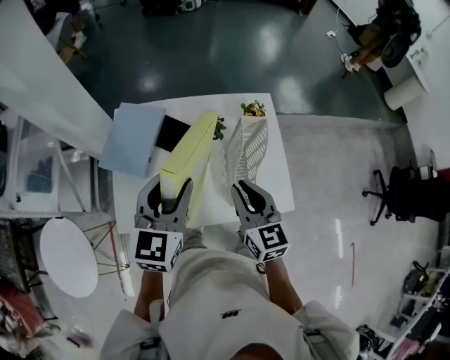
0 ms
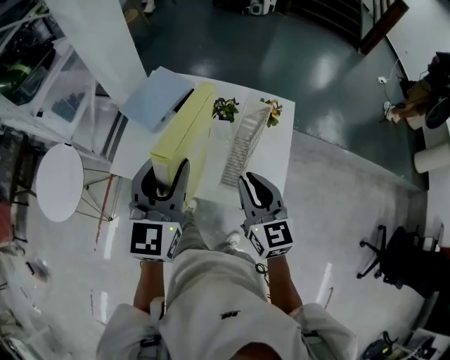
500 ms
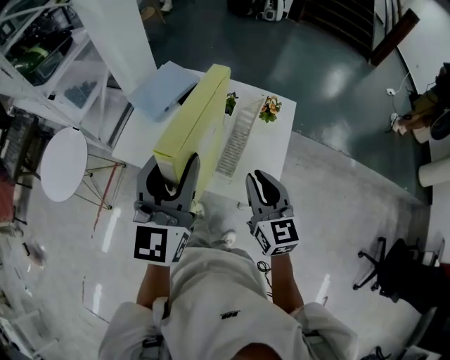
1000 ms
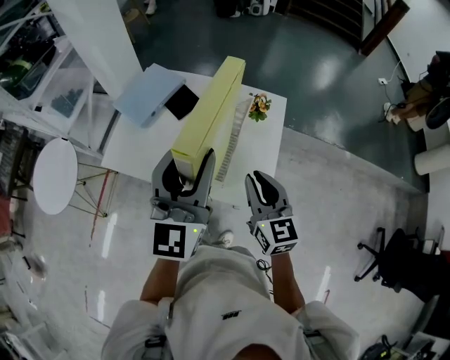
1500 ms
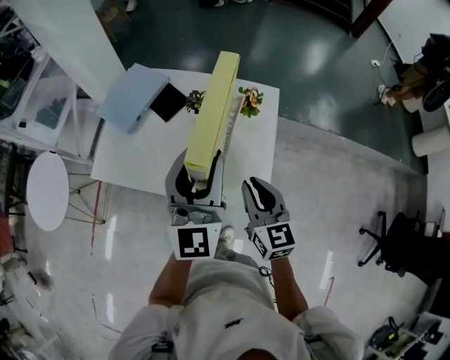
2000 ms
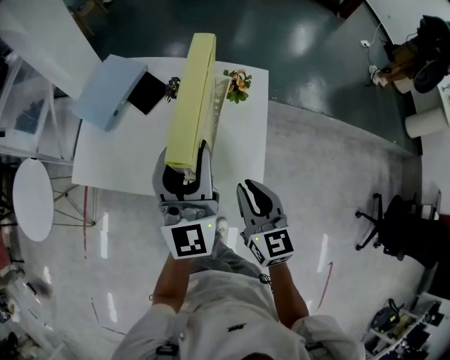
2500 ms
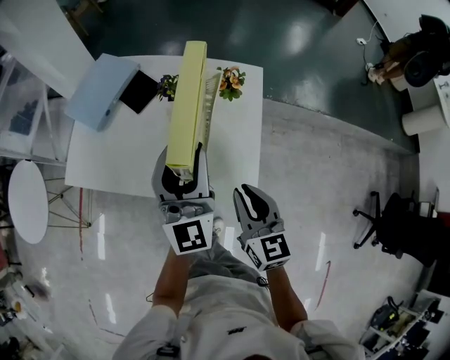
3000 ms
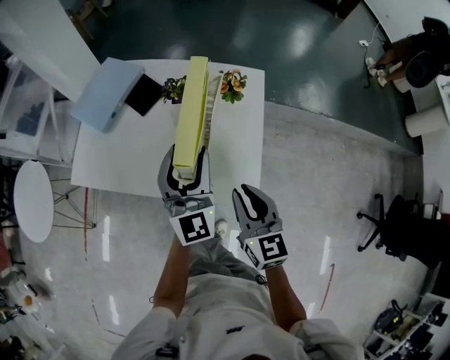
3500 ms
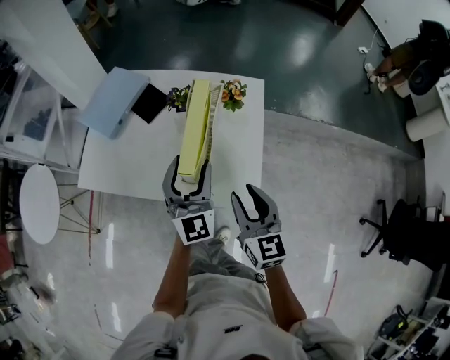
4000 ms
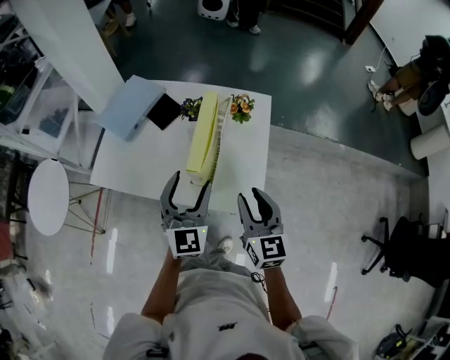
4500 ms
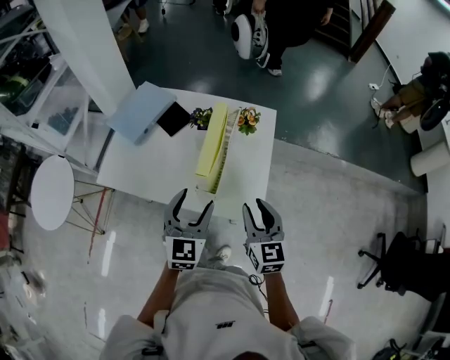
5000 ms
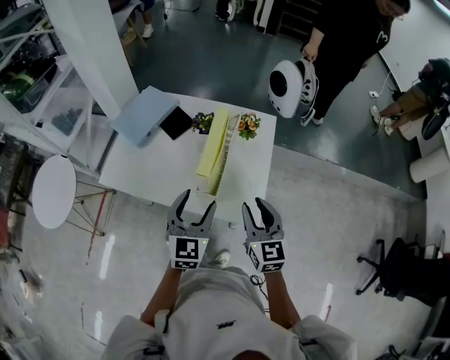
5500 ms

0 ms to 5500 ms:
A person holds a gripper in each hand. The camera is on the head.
0 ms to 2000 ms: The grippers both shift to the right and backward by approximately 20 cm. The left gripper turns by some 40 degrees.
2000 ms to 3500 ms: The right gripper is displaced downward by roughly 5 cm. The left gripper travels downward by about 15 cm.
3500 ms to 5500 ms: The left gripper is displaced backward by about 10 cm, and turns by approximately 20 degrees. The right gripper is displaced upward by about 5 cm.

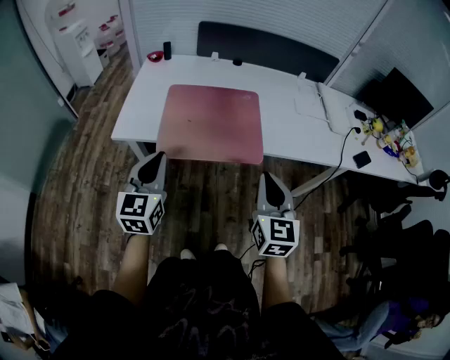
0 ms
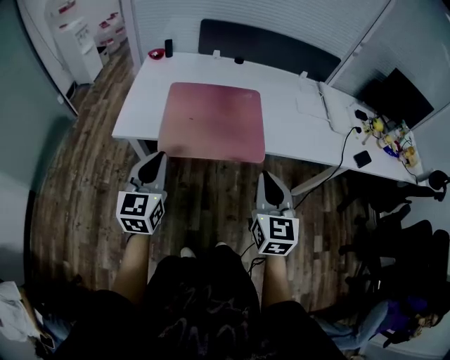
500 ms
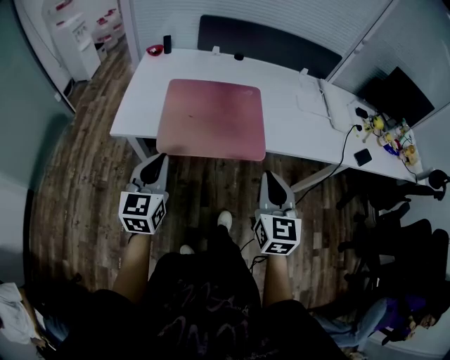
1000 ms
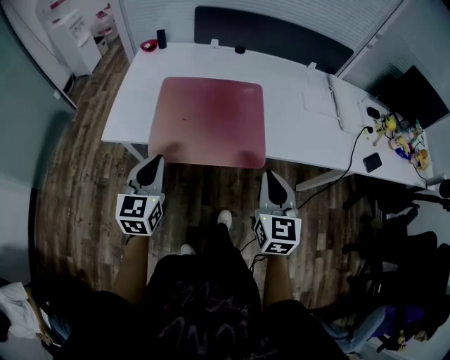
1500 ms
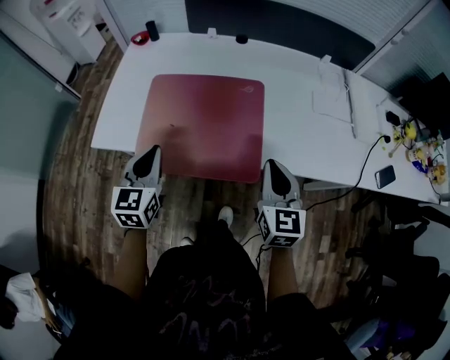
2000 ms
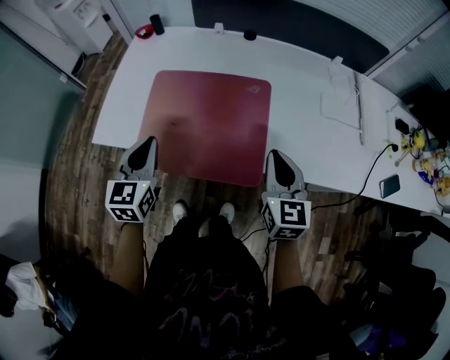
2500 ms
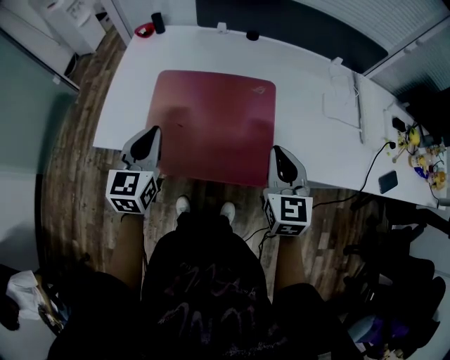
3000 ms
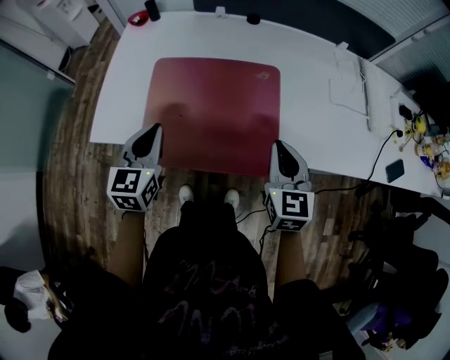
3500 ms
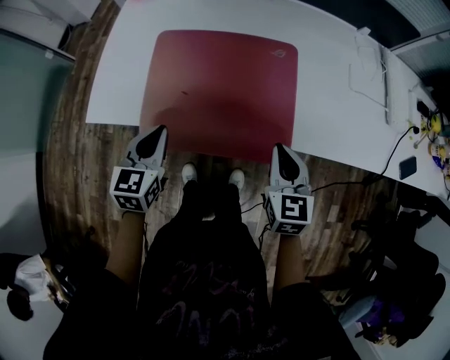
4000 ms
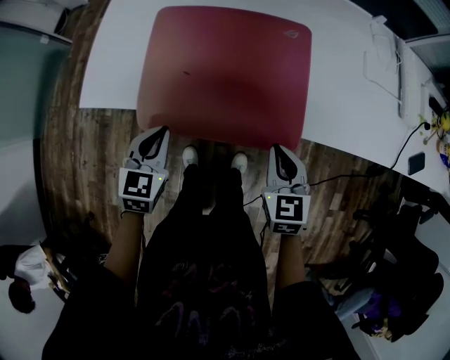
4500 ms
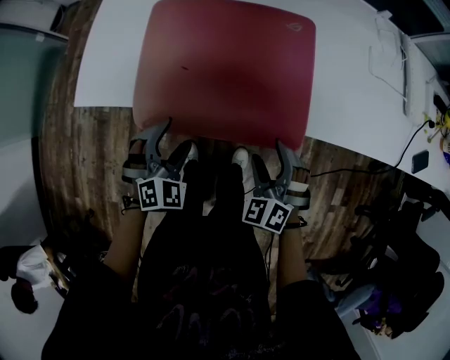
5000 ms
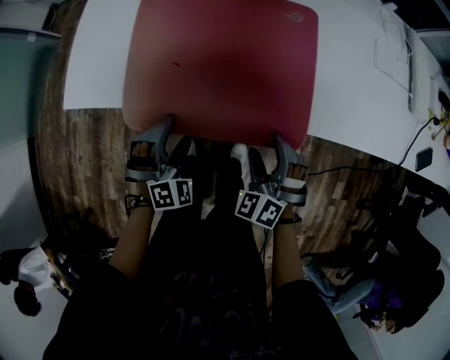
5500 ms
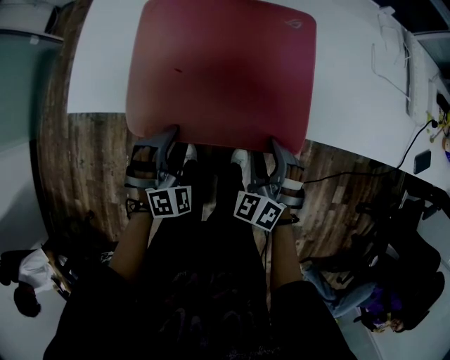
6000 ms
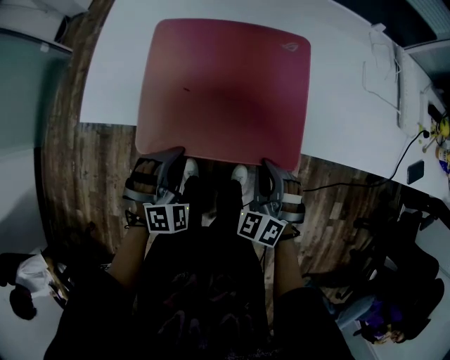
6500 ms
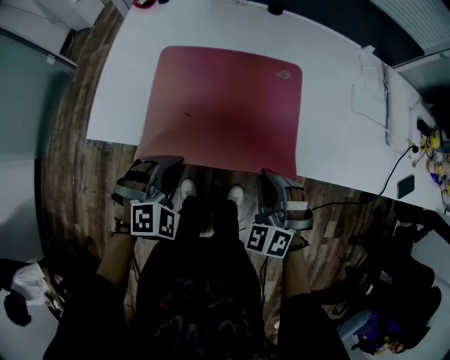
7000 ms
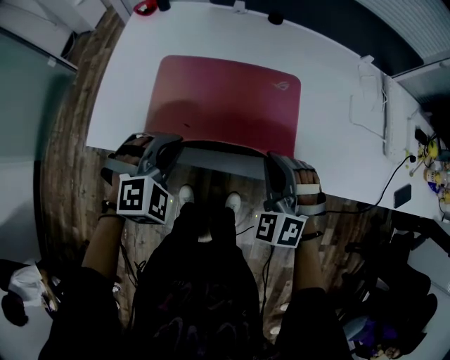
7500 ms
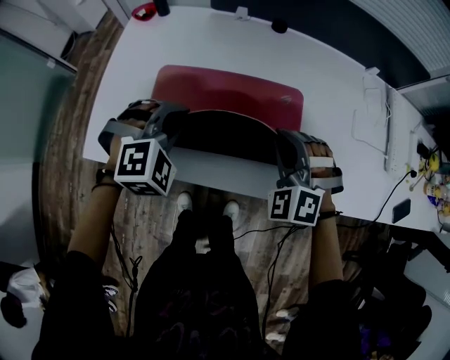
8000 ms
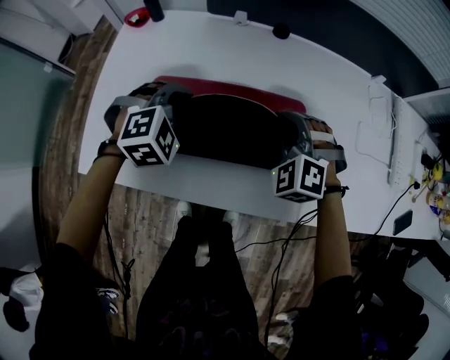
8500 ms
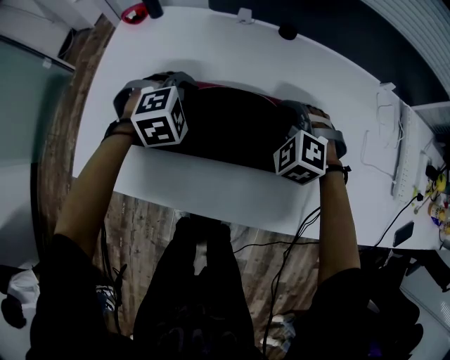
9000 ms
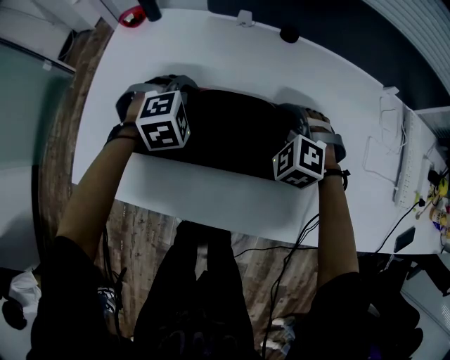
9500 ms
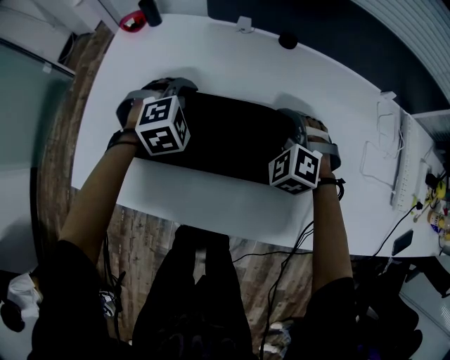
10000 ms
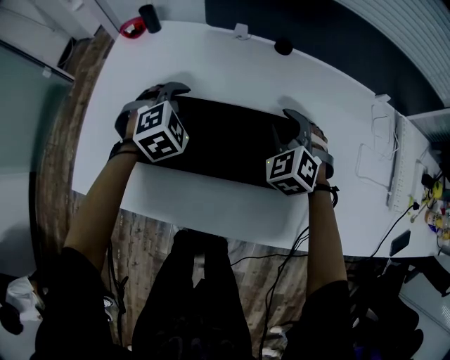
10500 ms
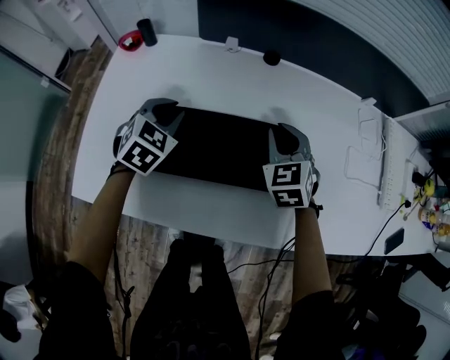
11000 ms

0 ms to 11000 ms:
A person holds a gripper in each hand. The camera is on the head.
0 ms to 2000 ms: Both grippers travel together forward, roughly 20 cm.
2000 ms to 3500 ms: Both grippers travel together forward, about 5 cm.
3500 ms to 5500 ms: The grippers both shift downward by roughly 20 cm. The right gripper twists some 50 degrees counterclockwise, seen from behind, and opens up, while the left gripper rotates around the line of its fingers by about 60 degrees, clockwise from behind, and opens its fingers.
5500 ms to 7500 ms: Both grippers move upward and forward, about 20 cm. The right gripper closes; the left gripper closes up.
7500 ms to 9000 ms: The grippers both shift forward by about 25 cm.
9000 ms to 11000 ms: The left gripper changes place by roughly 5 cm, and changes its angle by some 40 degrees, while the right gripper travels upward by some 5 cm, and changes its angle by some 40 degrees.

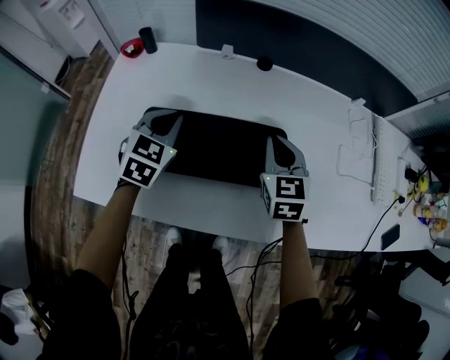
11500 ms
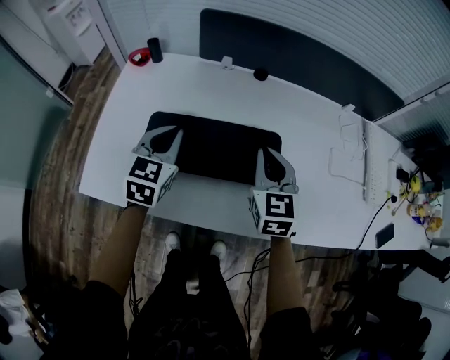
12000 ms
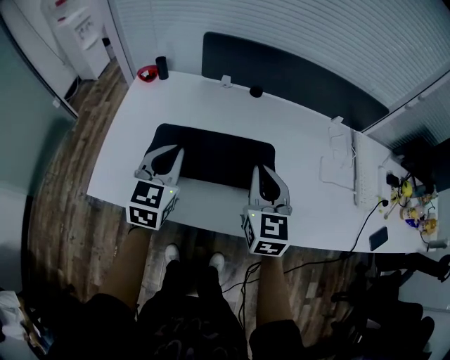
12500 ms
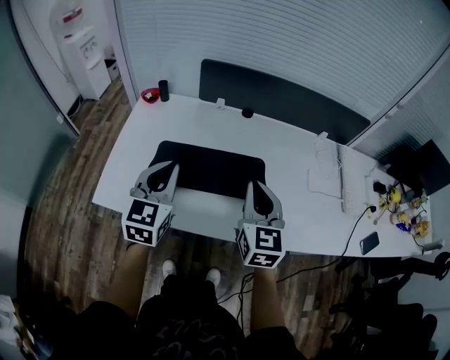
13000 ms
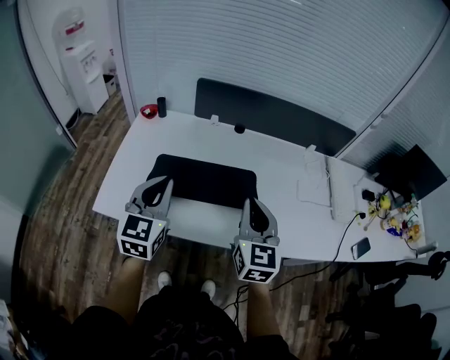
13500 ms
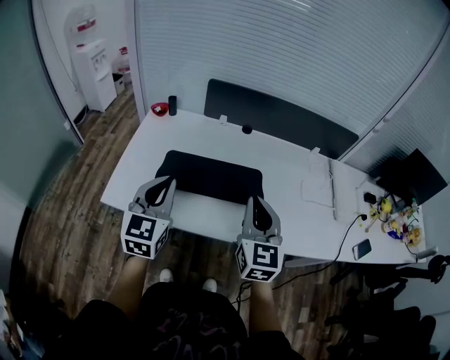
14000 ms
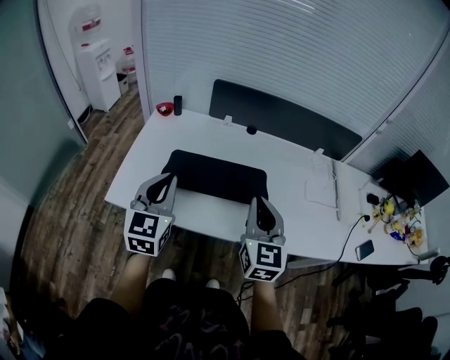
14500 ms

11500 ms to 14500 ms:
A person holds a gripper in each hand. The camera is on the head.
11500 ms to 13000 ms: The grippers both shift backward and upward by roughly 25 cm. The left gripper changes its angle by about 20 degrees.
13000 ms to 14500 ms: Both grippers move backward, approximately 10 cm.

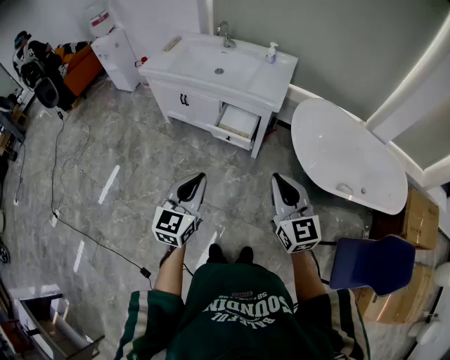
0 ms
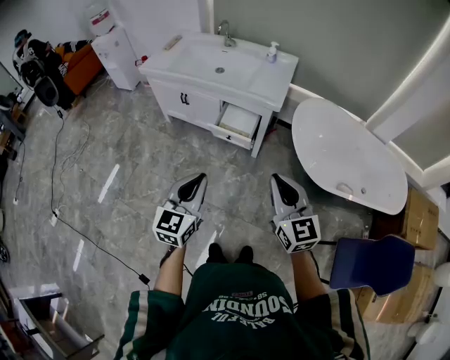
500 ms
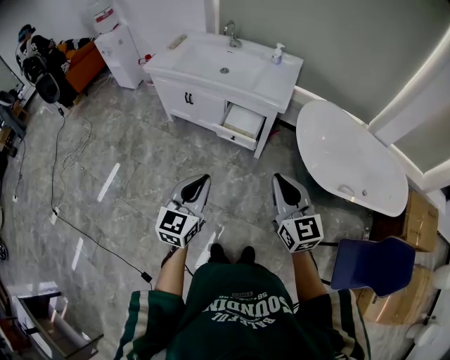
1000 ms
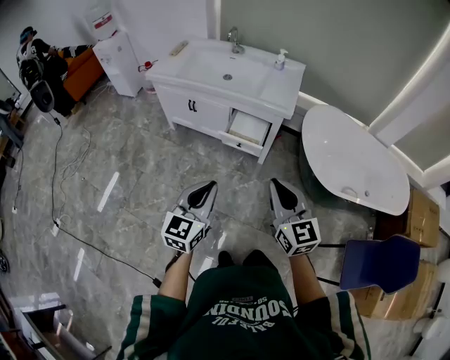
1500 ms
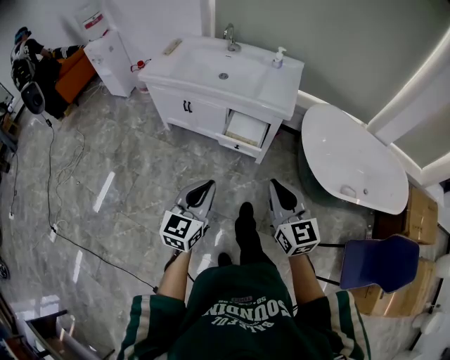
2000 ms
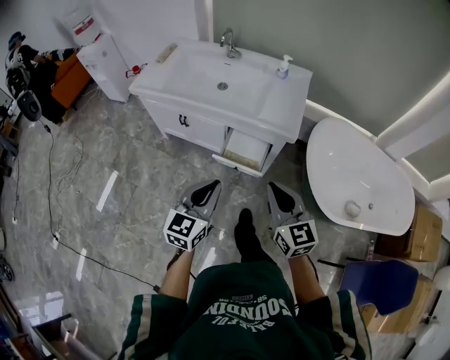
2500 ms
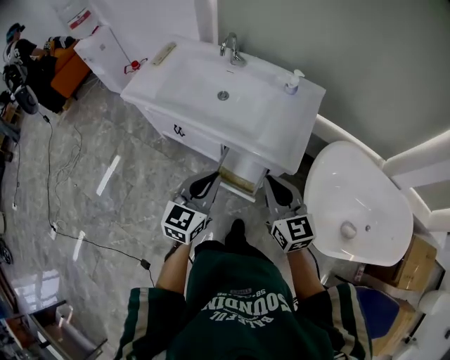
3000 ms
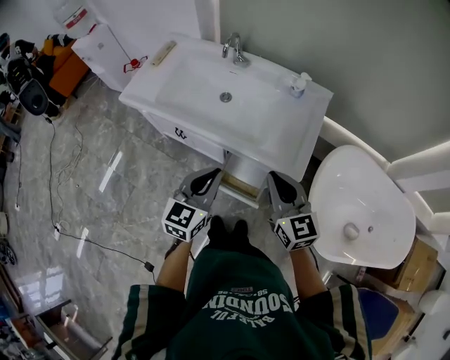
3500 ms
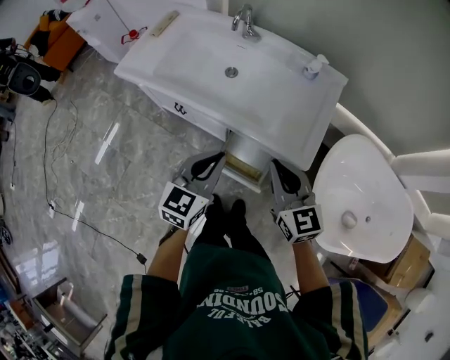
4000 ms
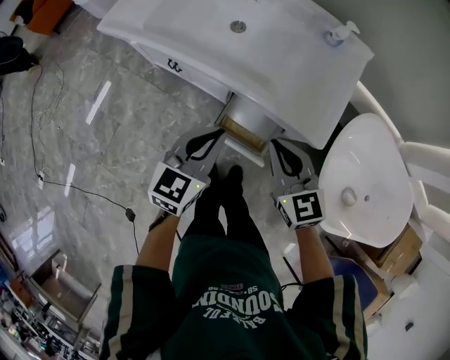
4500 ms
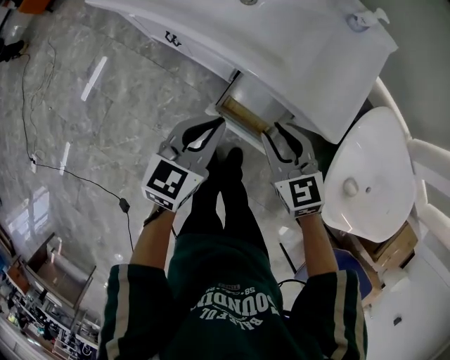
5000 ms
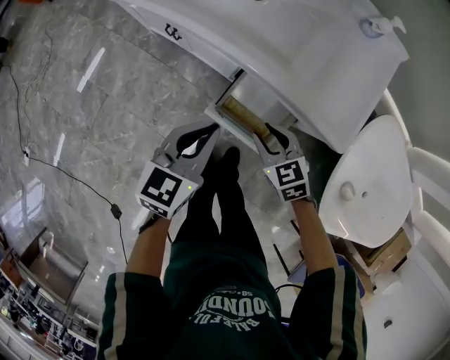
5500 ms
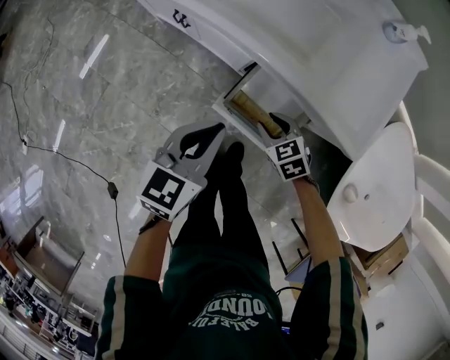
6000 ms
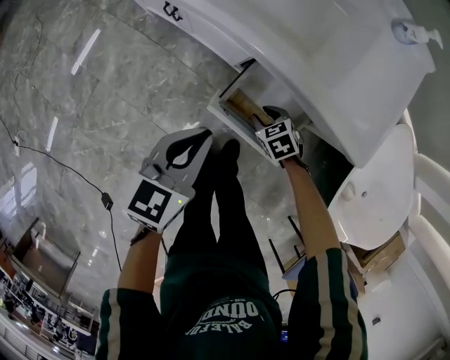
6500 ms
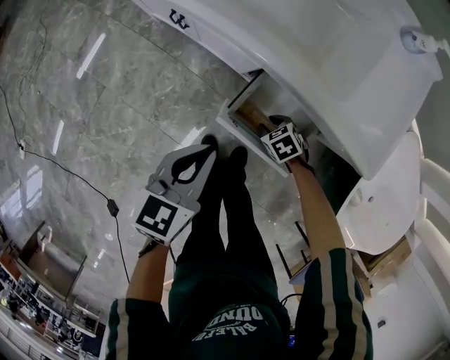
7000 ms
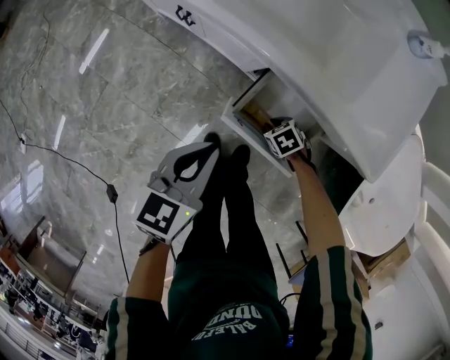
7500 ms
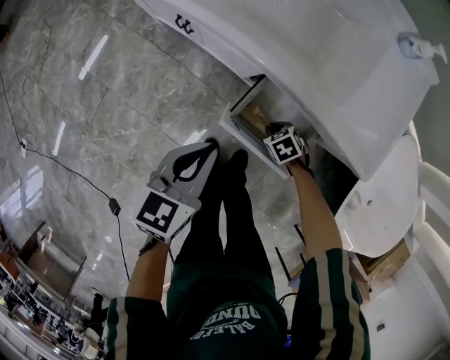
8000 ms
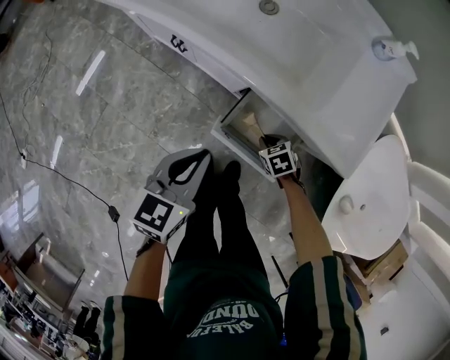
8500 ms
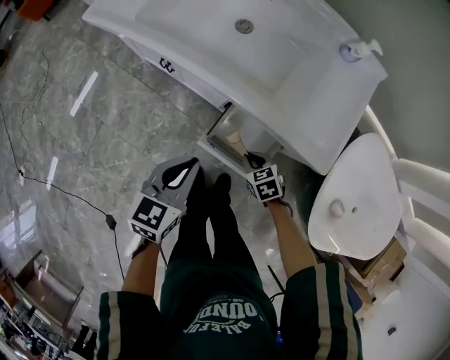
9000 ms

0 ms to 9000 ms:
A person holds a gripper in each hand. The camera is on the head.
0 ms to 2000 ms: The left gripper heads to the left and forward, covering about 10 cm; the right gripper is displaced to the left by about 10 cm.
2000 ms to 4500 ms: The pair of grippers is taken forward, approximately 40 cm. The right gripper changes its angle by about 20 degrees.
4500 ms to 7000 ms: The right gripper heads downward, covering about 50 cm, tips its fingers downward by about 50 degrees, and opens; the left gripper shifts some 20 cm downward and to the left.
7000 ms to 9000 ms: The left gripper heads upward, covering about 5 cm. Meanwhile the right gripper shifts about 15 cm upward, and closes up.
